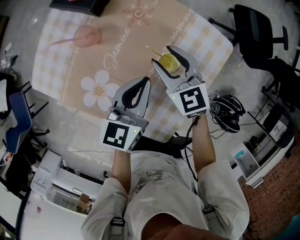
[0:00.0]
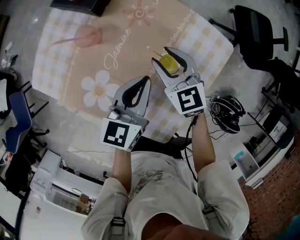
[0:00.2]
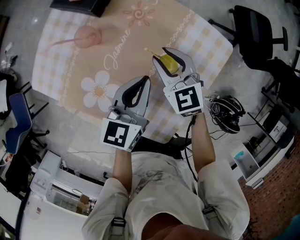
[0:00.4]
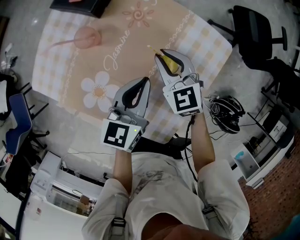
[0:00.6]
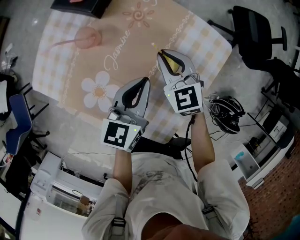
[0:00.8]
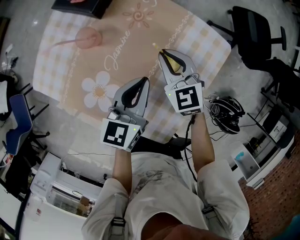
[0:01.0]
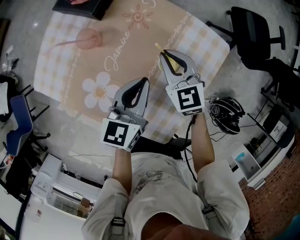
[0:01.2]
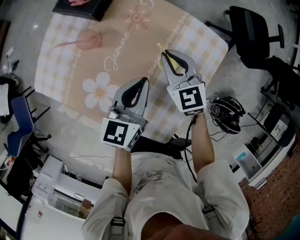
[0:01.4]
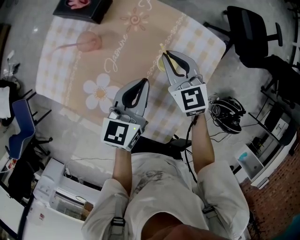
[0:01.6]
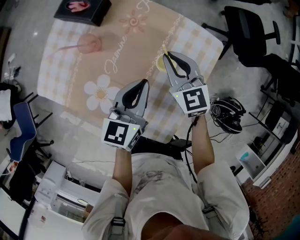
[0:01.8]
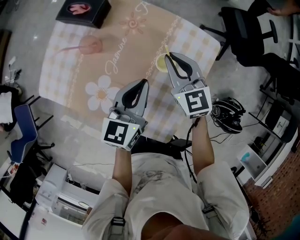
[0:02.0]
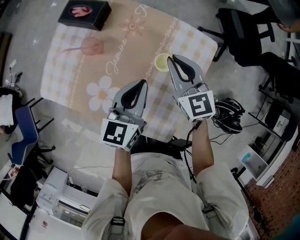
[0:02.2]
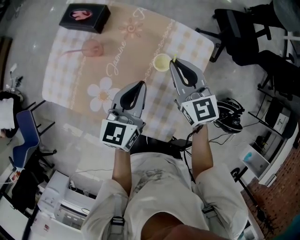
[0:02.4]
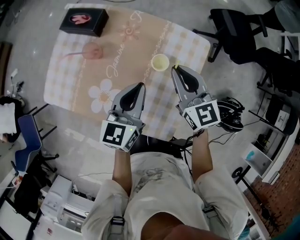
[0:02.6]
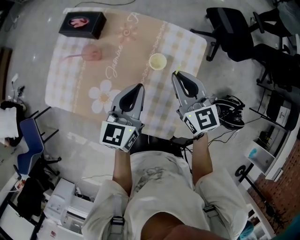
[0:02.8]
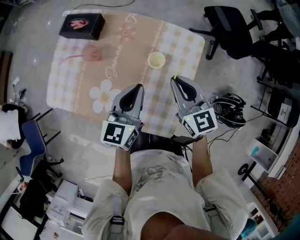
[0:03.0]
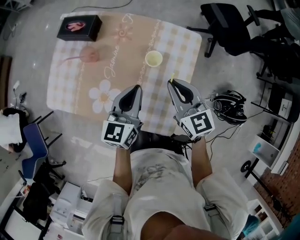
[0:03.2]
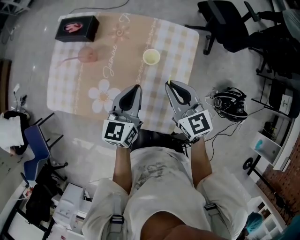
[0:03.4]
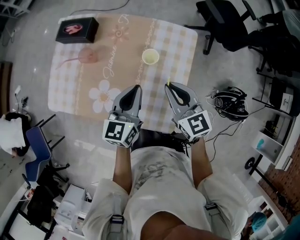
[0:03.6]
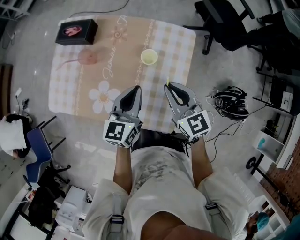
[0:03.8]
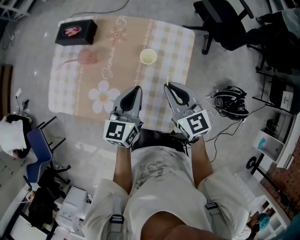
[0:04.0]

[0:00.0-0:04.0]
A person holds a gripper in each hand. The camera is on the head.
0:00.0 to 0:01.4: The right gripper closes.
0:01.4 to 0:02.6: The right gripper travels upward, backward and to the right by roughly 15 cm. The left gripper travels upward by some 5 cm.
0:02.6 to 0:04.0: The right gripper travels backward by approximately 10 cm. The left gripper shifts approximately 5 cm backward.

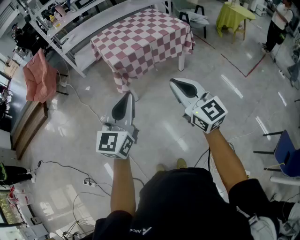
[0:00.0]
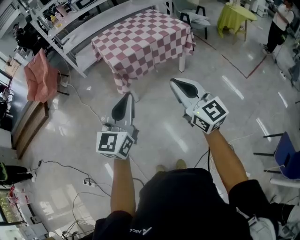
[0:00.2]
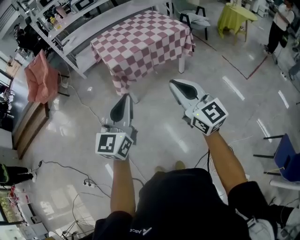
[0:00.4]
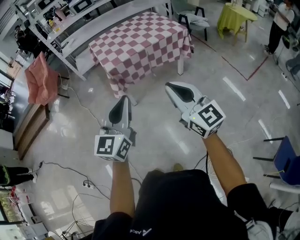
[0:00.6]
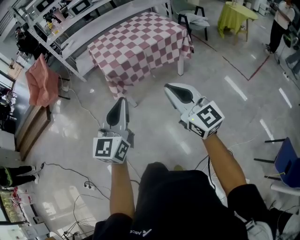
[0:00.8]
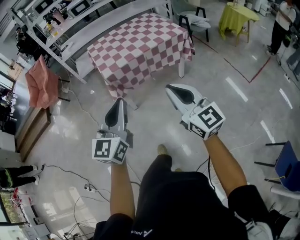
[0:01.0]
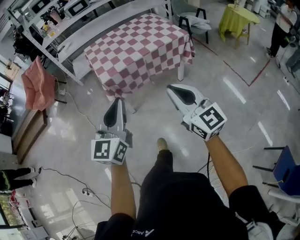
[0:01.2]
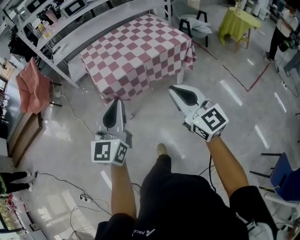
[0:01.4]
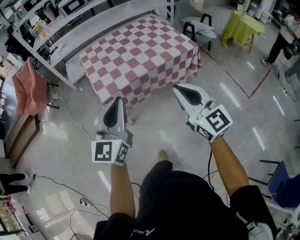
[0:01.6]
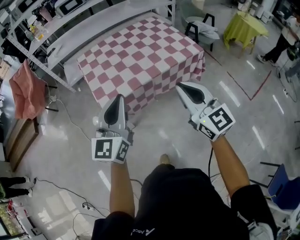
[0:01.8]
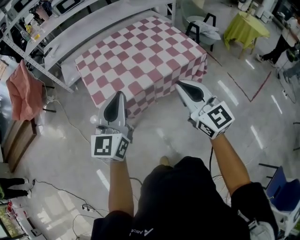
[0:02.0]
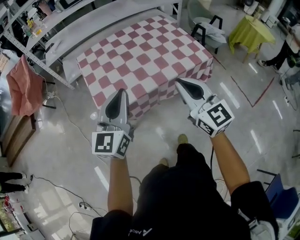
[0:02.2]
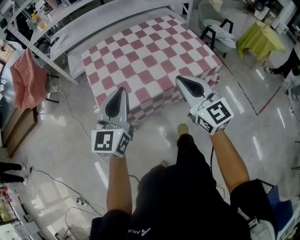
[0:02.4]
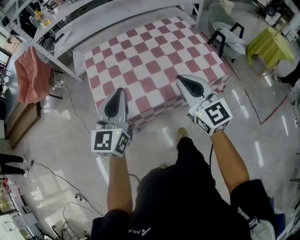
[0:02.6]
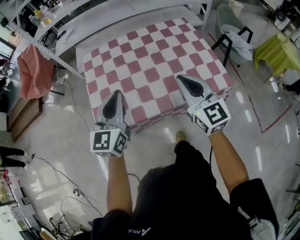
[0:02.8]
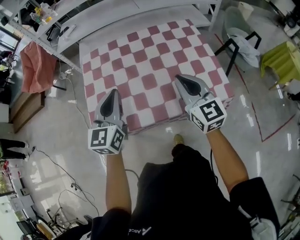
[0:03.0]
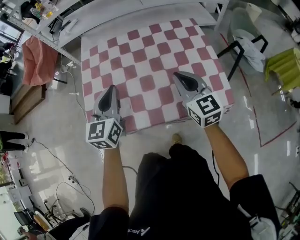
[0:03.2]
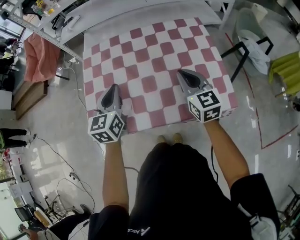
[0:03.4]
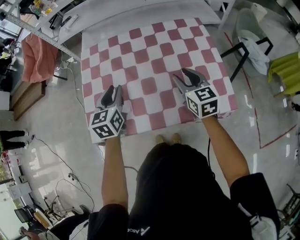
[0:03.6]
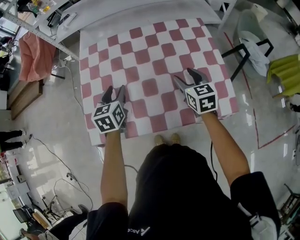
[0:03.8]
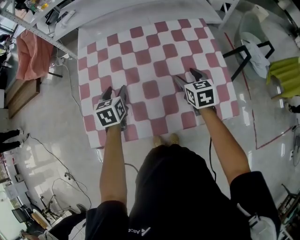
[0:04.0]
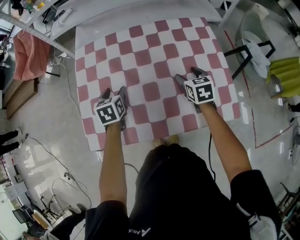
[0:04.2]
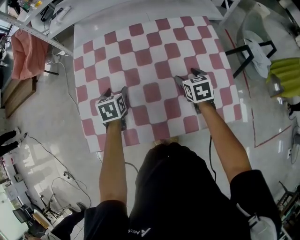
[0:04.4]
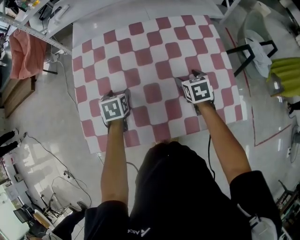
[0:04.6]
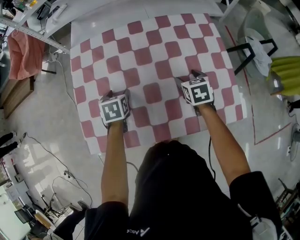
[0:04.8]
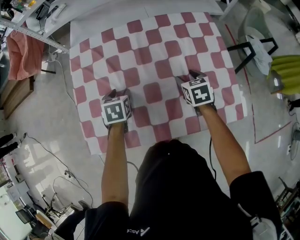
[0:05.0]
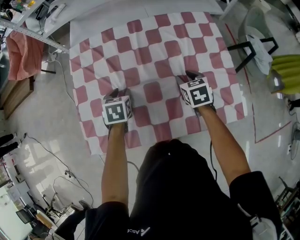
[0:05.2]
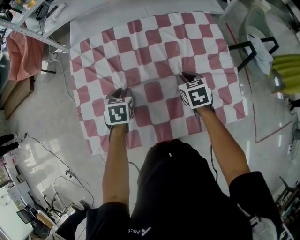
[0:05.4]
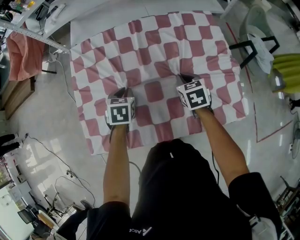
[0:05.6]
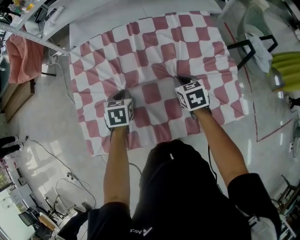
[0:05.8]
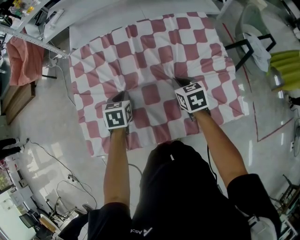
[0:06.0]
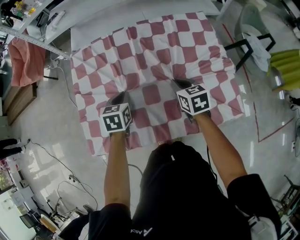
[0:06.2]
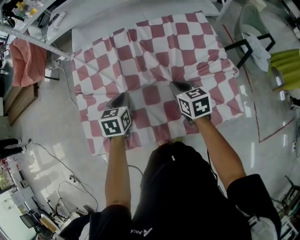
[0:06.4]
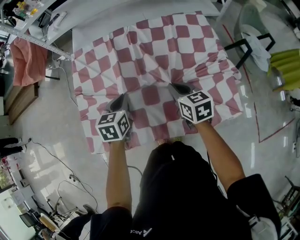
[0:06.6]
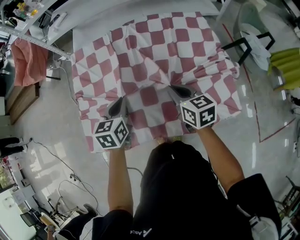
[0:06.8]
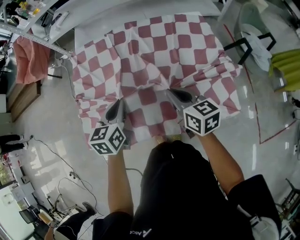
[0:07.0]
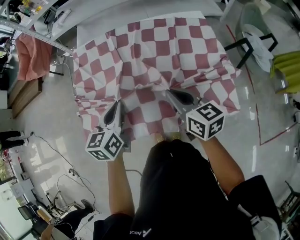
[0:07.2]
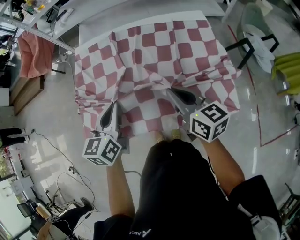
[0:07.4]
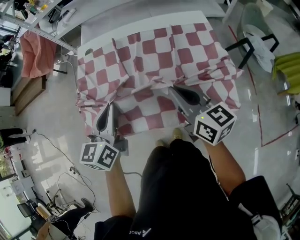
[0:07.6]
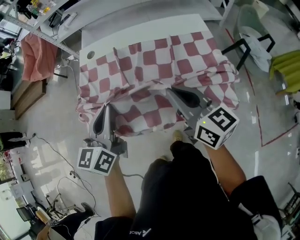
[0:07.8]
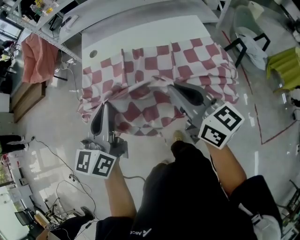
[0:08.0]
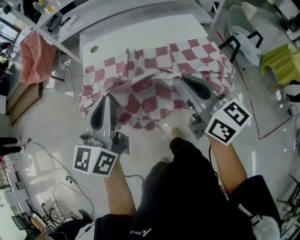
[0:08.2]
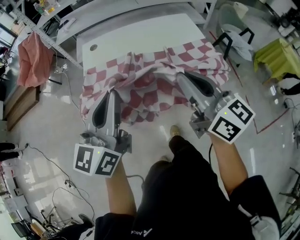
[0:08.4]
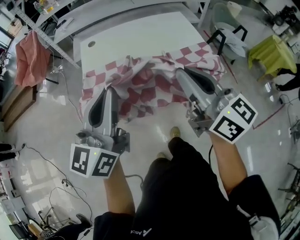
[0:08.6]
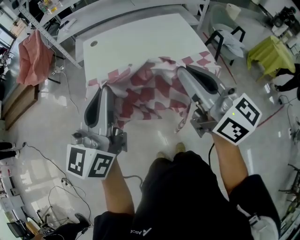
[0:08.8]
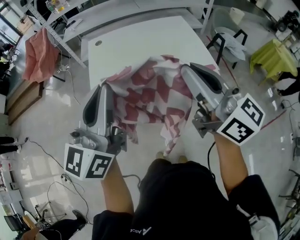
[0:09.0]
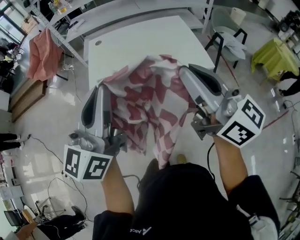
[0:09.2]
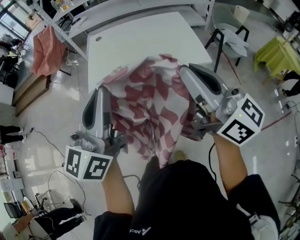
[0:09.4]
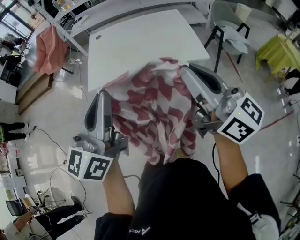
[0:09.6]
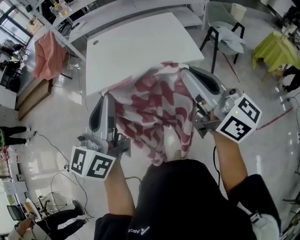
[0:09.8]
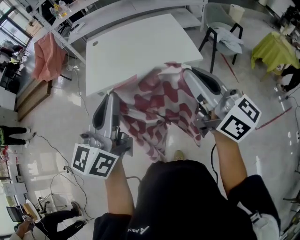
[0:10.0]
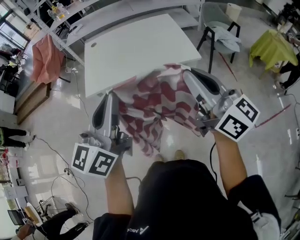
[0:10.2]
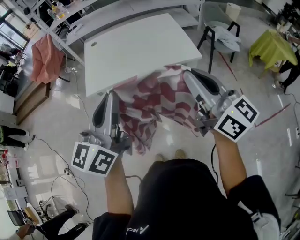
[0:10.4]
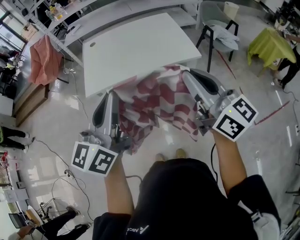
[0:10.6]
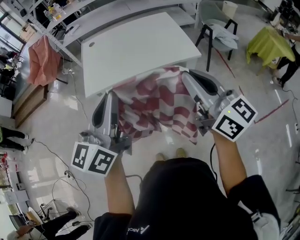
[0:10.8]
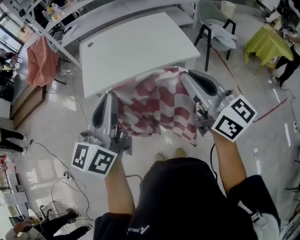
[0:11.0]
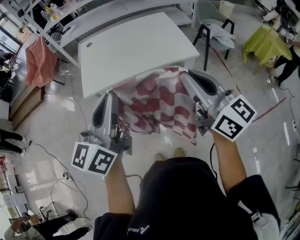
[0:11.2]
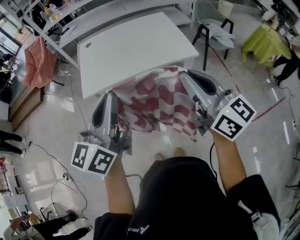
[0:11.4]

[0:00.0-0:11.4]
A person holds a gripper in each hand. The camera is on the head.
0:00.0 to 0:01.4: The left gripper goes about 25 cm forward, while the right gripper moves forward and to the right, roughly 25 cm.
0:01.4 to 0:02.8: Both grippers are carried forward, roughly 50 cm.
0:02.8 to 0:04.2: The right gripper moves forward, downward and to the right, about 35 cm, points its fingers some 40 degrees further downward, and opens, while the left gripper heads forward and downward, covering some 30 cm, angles its fingers downward, by roughly 40 degrees, and opens up.
0:04.2 to 0:05.6: The right gripper shifts by about 5 cm, and closes its fingers, while the left gripper shifts by roughly 5 cm, and closes.
0:05.6 to 0:07.2: The grippers both shift upward and backward by some 20 cm. The left gripper rotates about 30 degrees. The right gripper points its fingers some 30 degrees further upward.
0:07.2 to 0:08.6: The grippers both shift backward and upward by roughly 35 cm. The right gripper swivels some 30 degrees; the left gripper points its fingers some 30 degrees further upward.
0:08.6 to 0:10.0: Both grippers travel together backward and to the right, some 30 cm.
0:10.0 to 0:11.4: There are only small adjustments of the grippers.

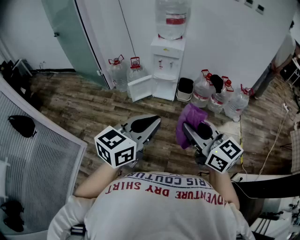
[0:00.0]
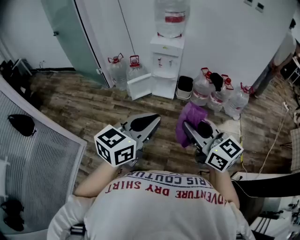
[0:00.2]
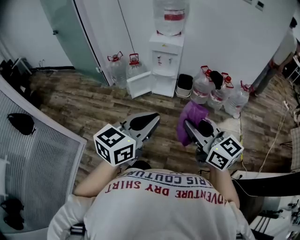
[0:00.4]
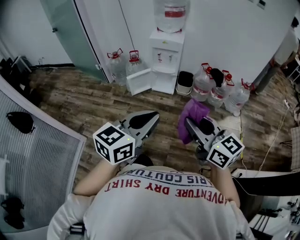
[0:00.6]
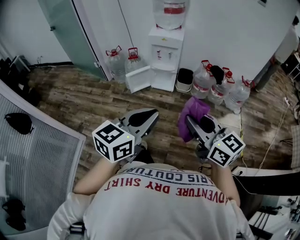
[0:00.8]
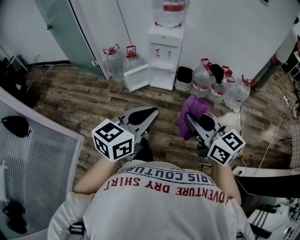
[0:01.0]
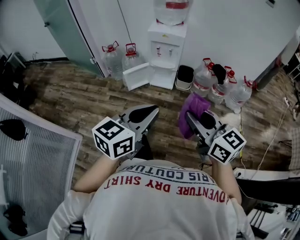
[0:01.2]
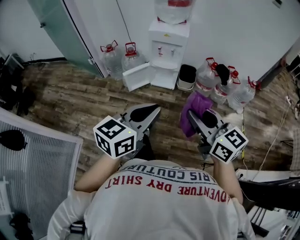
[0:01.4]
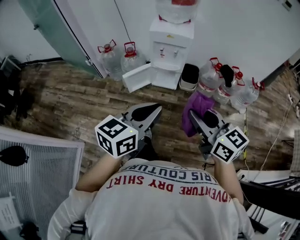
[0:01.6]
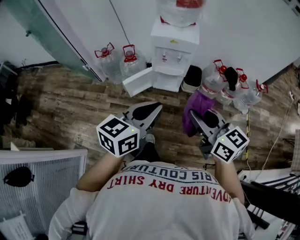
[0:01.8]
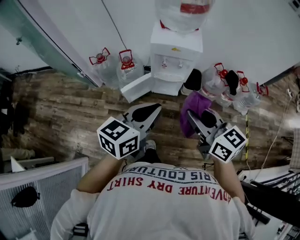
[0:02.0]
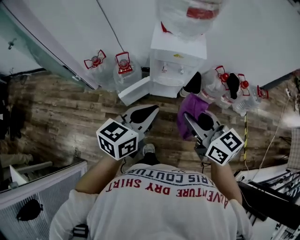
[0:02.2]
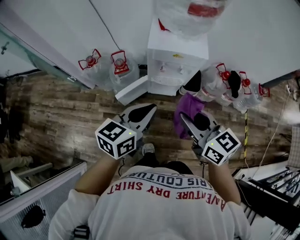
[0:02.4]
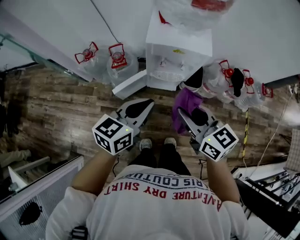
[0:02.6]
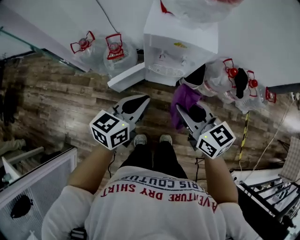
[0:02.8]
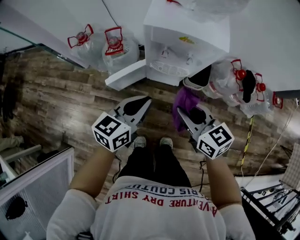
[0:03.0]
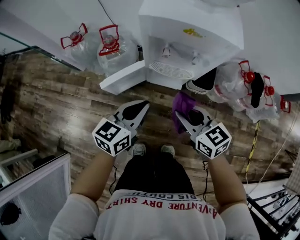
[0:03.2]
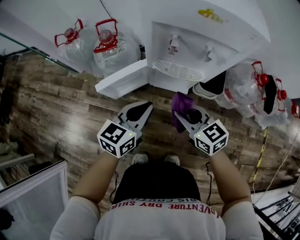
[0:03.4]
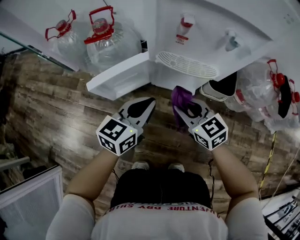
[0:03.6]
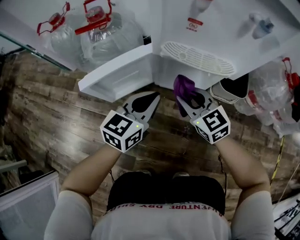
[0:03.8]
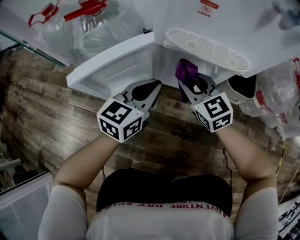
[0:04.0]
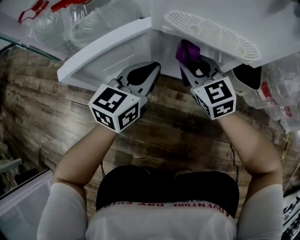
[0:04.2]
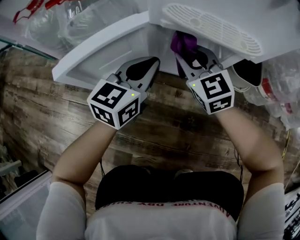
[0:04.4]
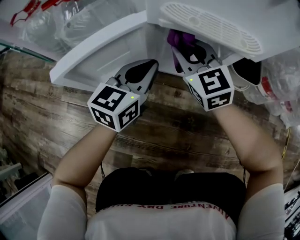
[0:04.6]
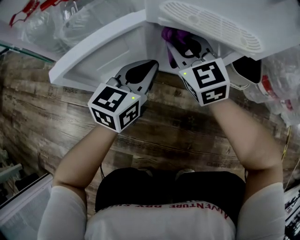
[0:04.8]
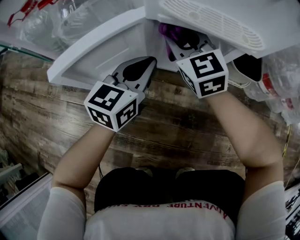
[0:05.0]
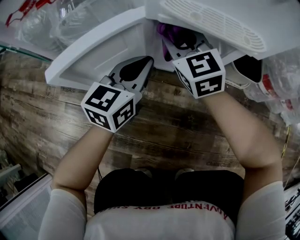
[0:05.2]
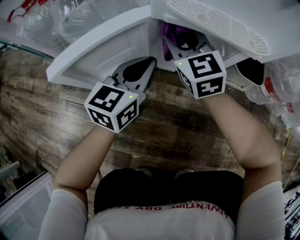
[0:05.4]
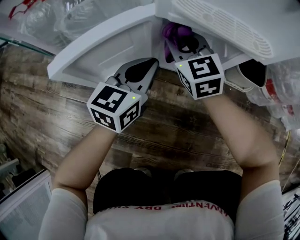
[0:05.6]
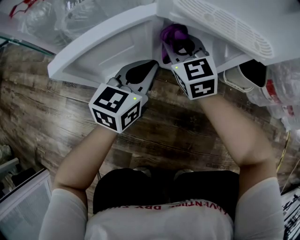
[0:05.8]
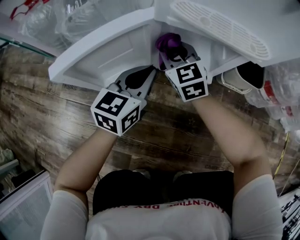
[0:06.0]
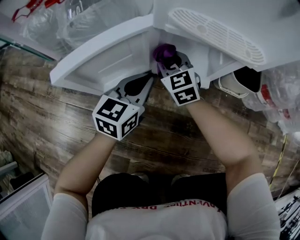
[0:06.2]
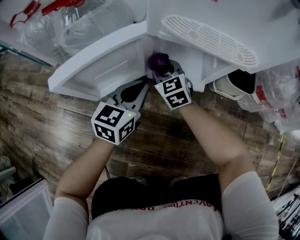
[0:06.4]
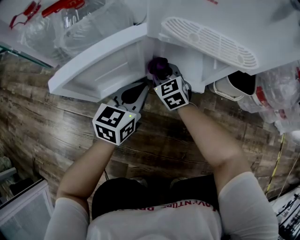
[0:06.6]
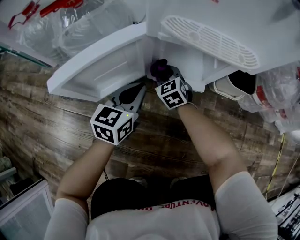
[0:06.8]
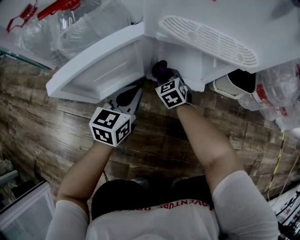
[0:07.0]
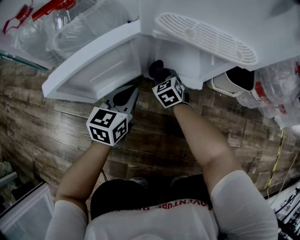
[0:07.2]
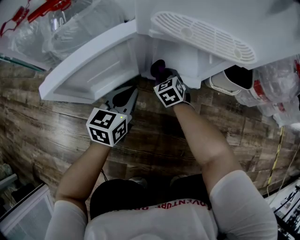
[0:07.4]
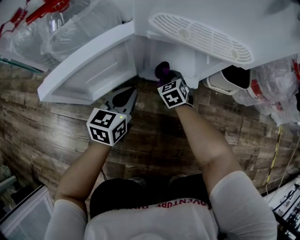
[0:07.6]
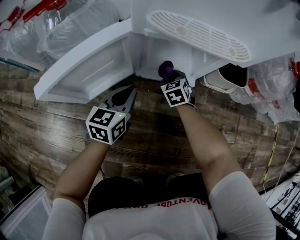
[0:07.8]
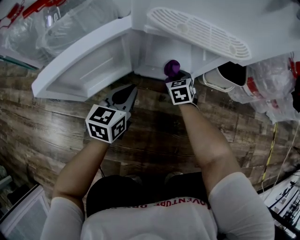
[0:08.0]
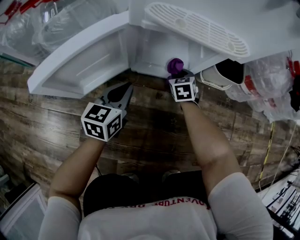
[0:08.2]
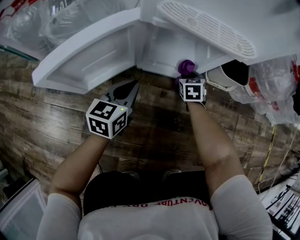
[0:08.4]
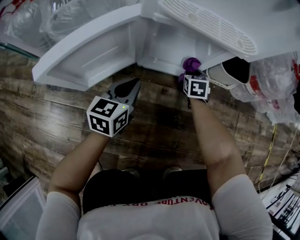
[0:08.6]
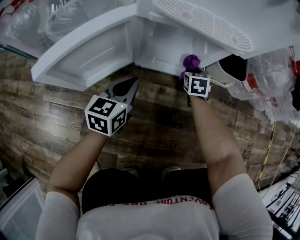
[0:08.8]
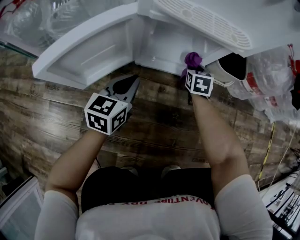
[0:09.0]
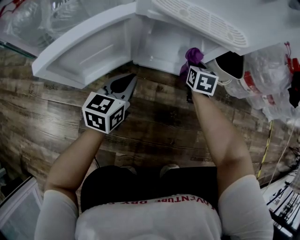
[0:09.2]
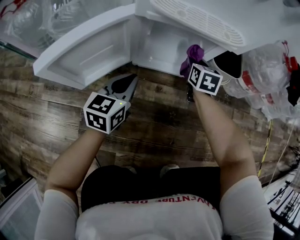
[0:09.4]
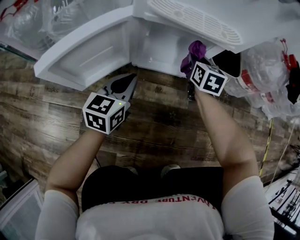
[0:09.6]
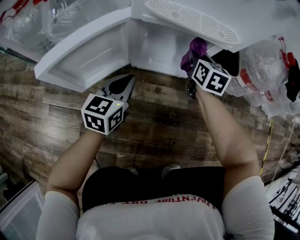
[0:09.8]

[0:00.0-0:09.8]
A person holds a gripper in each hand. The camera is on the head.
0:00.0 to 0:01.4: The left gripper travels forward and downward by about 15 cm. Meanwhile the right gripper is displaced forward by some 15 cm.
0:01.4 to 0:02.8: The pair of grippers is taken forward, some 40 cm. The grippers both shift downward by about 20 cm.
0:02.8 to 0:04.2: The right gripper goes some 60 cm downward and forward, and turns by about 30 degrees; the left gripper heads downward, covering about 50 cm.
0:04.2 to 0:05.6: The right gripper travels to the left by roughly 5 cm.
0:05.6 to 0:07.0: The right gripper shifts approximately 20 cm downward, and rotates roughly 20 degrees. Meanwhile the left gripper moves downward, about 5 cm.
0:07.0 to 0:08.4: The right gripper moves to the right, some 15 cm, and changes its angle by roughly 30 degrees.
0:08.4 to 0:09.8: The right gripper moves upward, approximately 15 cm, and changes its angle by roughly 30 degrees.
